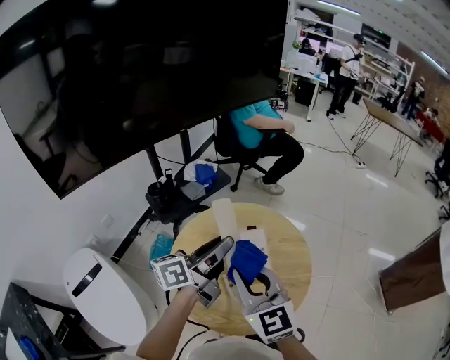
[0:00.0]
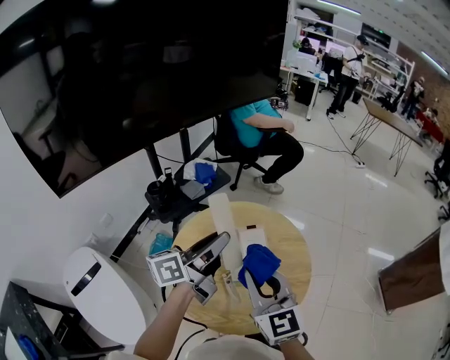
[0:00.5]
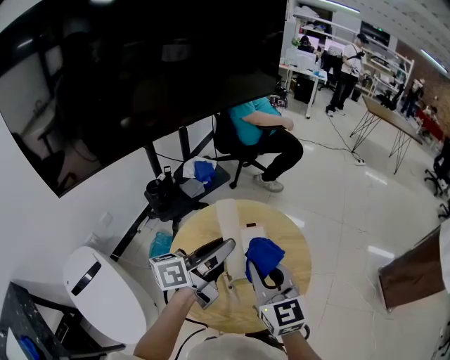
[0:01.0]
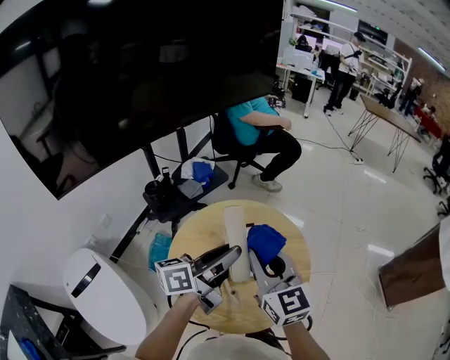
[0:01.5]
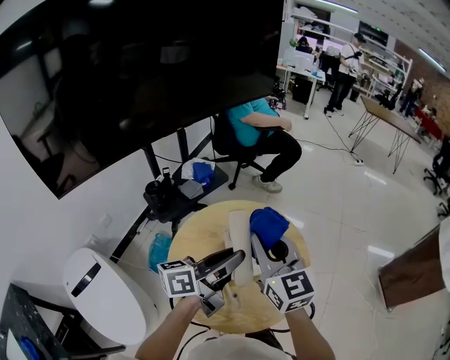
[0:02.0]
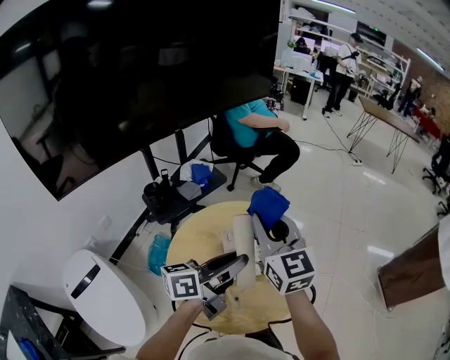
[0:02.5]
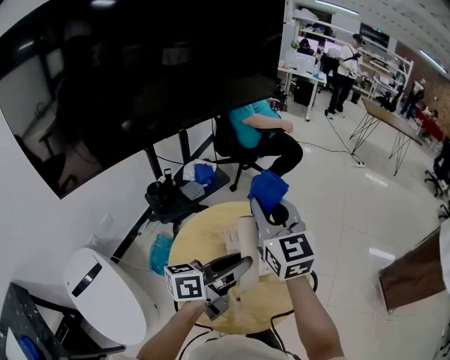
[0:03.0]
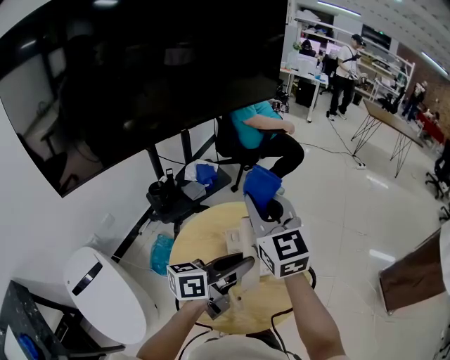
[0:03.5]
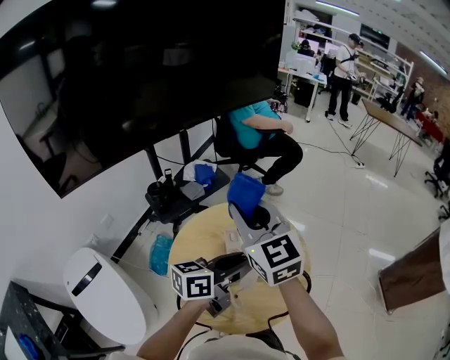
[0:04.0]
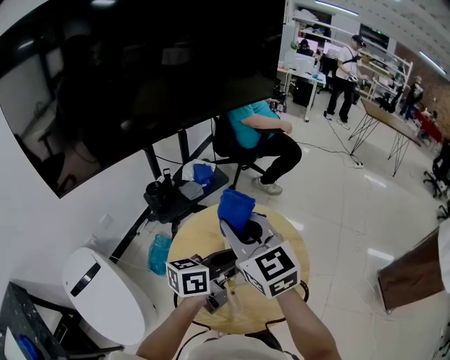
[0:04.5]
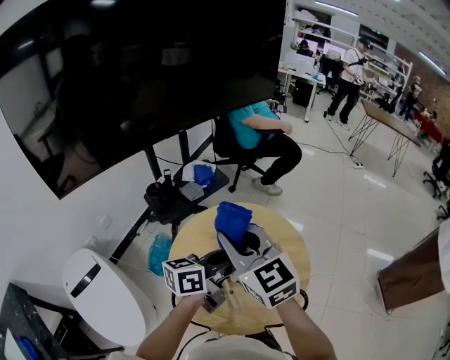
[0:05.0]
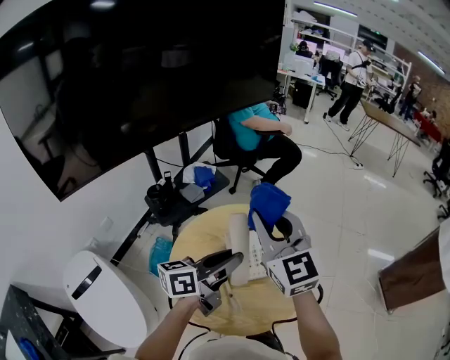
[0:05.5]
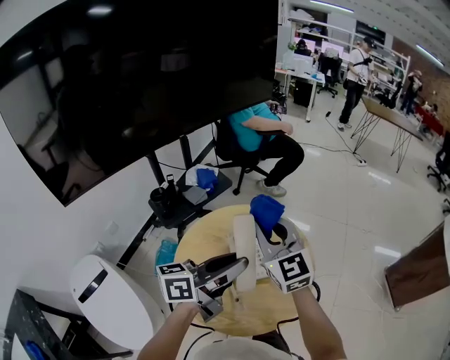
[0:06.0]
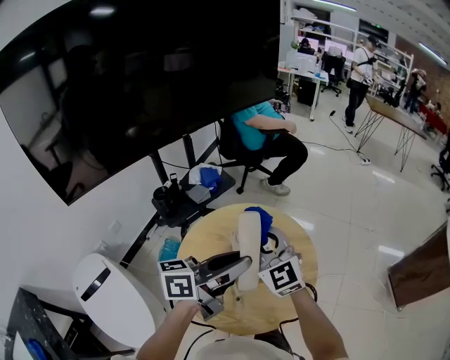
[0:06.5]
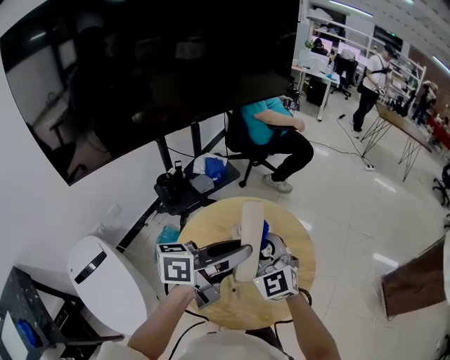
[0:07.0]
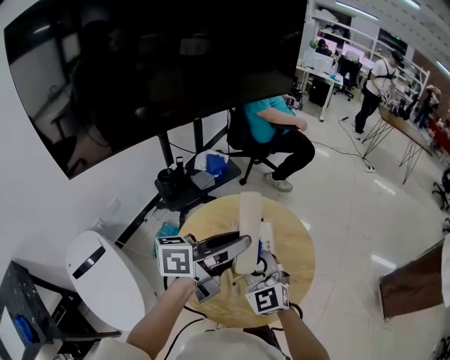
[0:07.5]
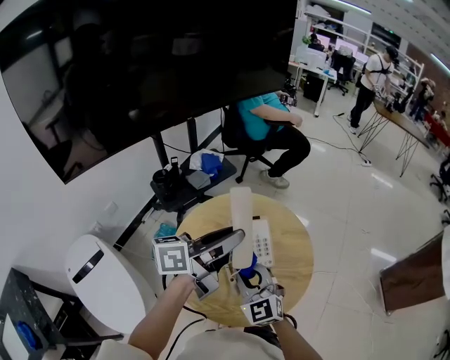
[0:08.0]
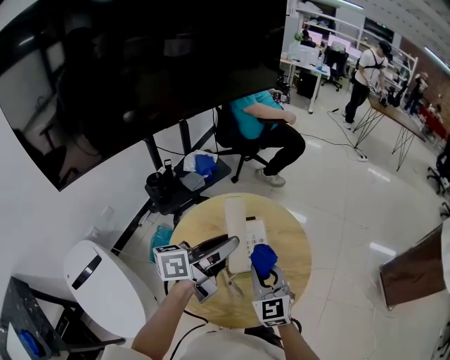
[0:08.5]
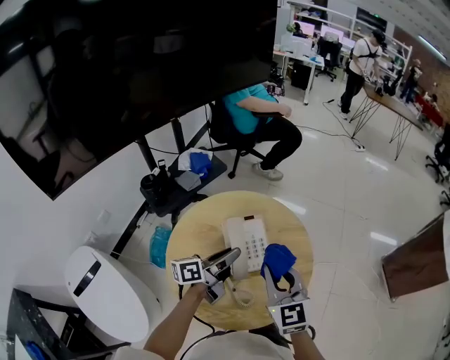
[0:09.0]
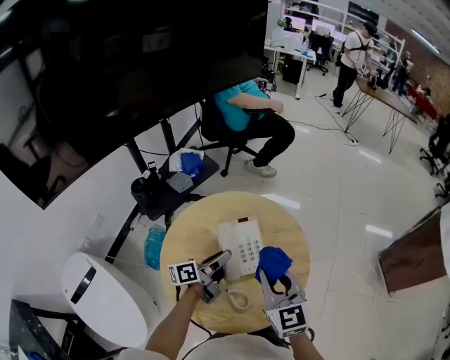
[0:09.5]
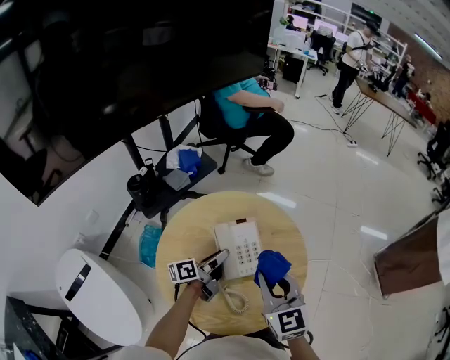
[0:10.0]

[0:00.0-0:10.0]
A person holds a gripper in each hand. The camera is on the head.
0:00.0 to 0:02.0: The right gripper travels forward by roughly 10 cm; the left gripper shifts by approximately 5 cm.
0:02.0 to 0:04.0: The right gripper shifts approximately 10 cm to the left and upward.
0:04.0 to 0:06.0: The left gripper moves upward, some 5 cm; the right gripper shifts approximately 10 cm to the right and downward.
0:06.0 to 0:08.0: The right gripper shifts some 20 cm downward and backward.
0:08.0 to 0:10.0: The right gripper moves to the right, some 10 cm, and changes its angle by about 30 degrees. The left gripper is displaced downward by approximately 30 cm, and rotates some 30 degrees.

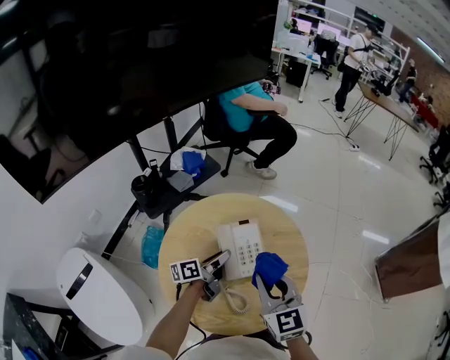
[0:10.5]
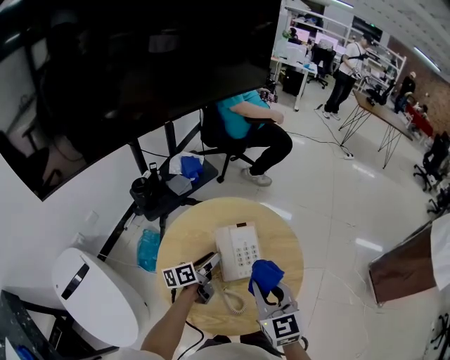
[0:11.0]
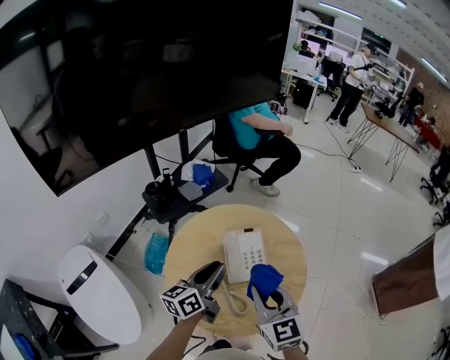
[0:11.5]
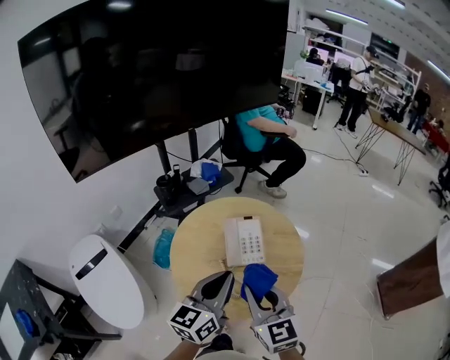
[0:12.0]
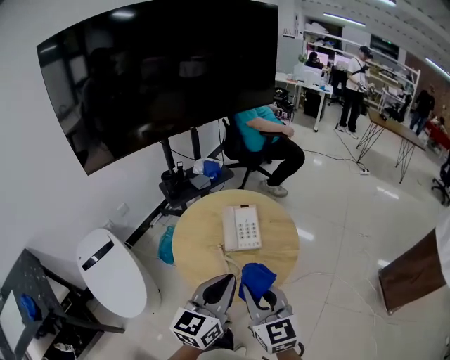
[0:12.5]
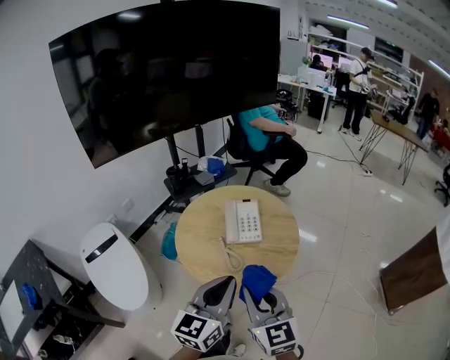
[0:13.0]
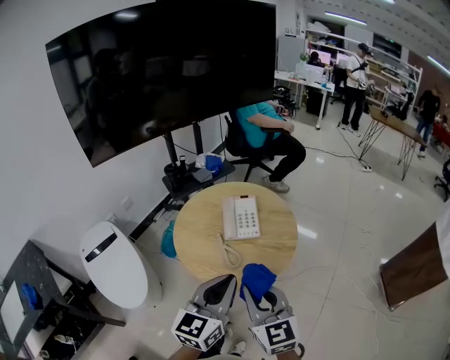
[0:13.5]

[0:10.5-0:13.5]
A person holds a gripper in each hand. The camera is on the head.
0:10.5 to 0:12.0: The right gripper goes approximately 15 cm backward and upward. Meanwhile the left gripper moves upward and backward, roughly 30 cm, rolls clockwise, seen from behind, by some 50 degrees, and closes its fingers.
0:12.0 to 0:13.5: The grippers both shift backward by roughly 15 cm.

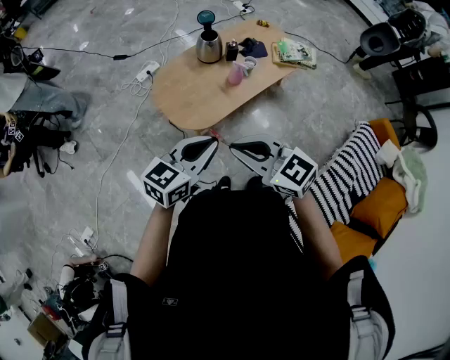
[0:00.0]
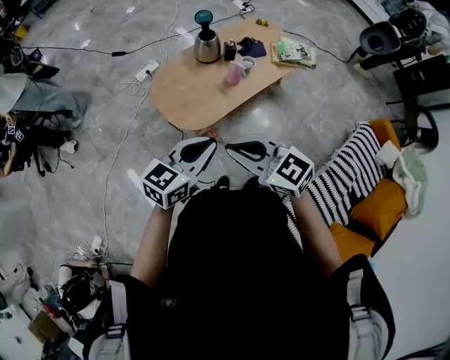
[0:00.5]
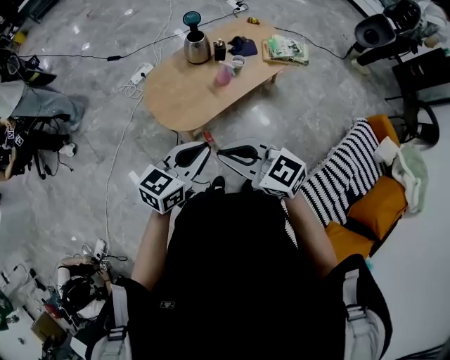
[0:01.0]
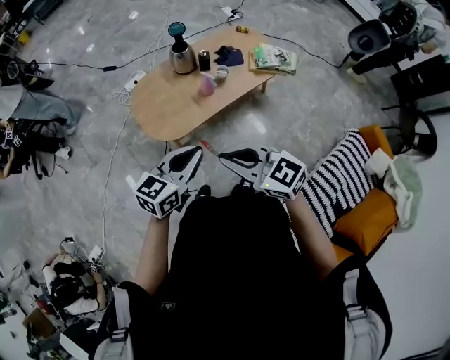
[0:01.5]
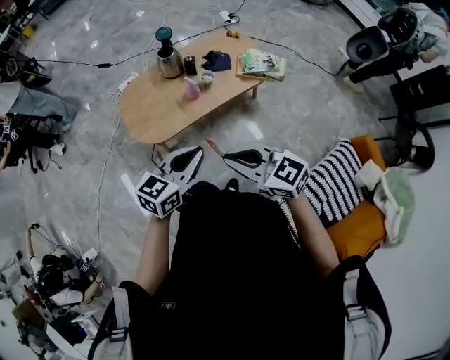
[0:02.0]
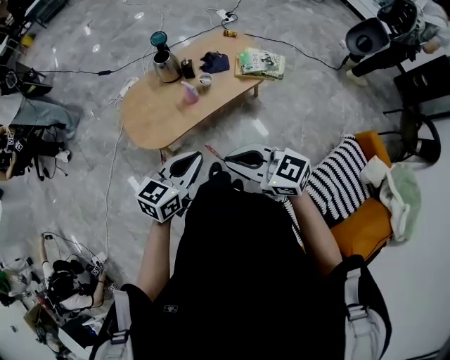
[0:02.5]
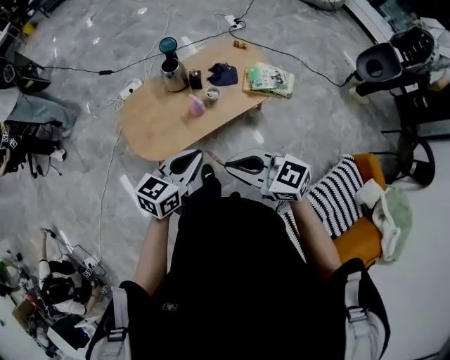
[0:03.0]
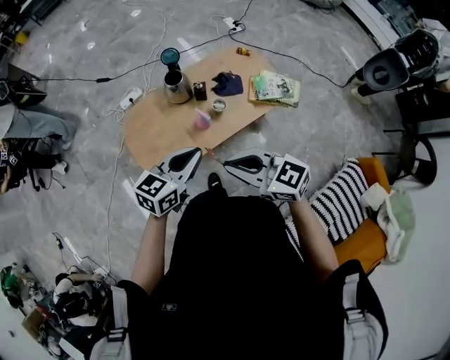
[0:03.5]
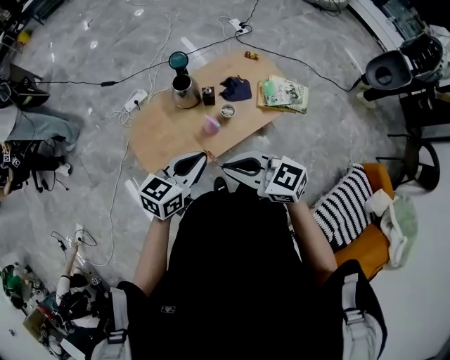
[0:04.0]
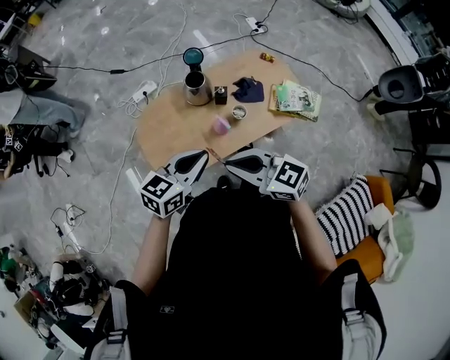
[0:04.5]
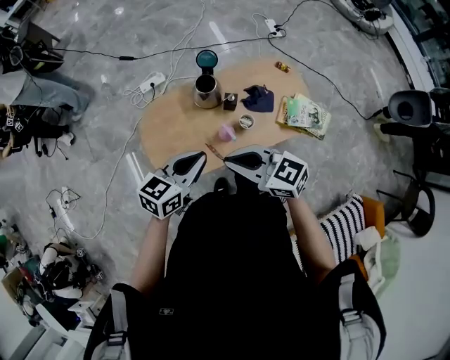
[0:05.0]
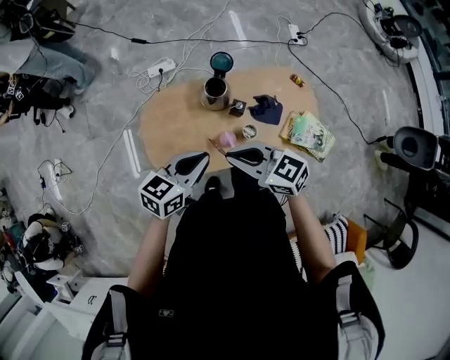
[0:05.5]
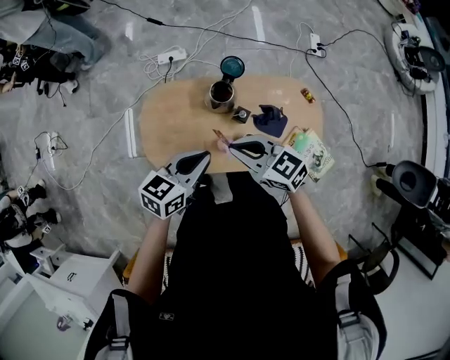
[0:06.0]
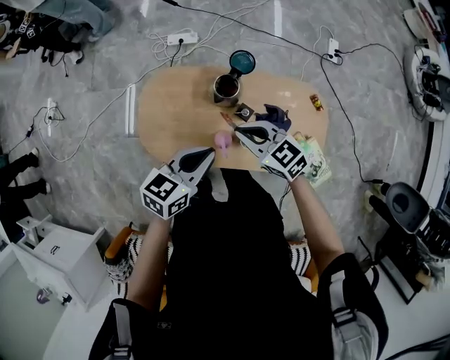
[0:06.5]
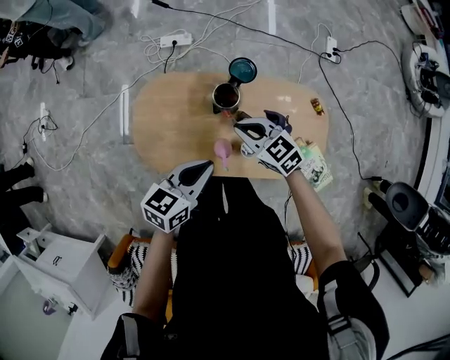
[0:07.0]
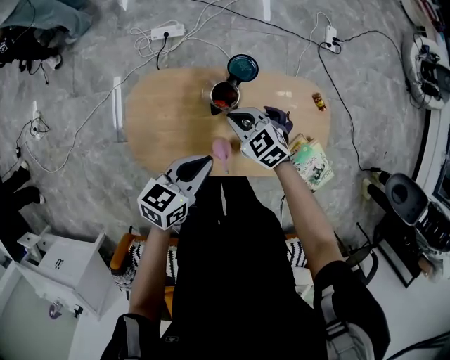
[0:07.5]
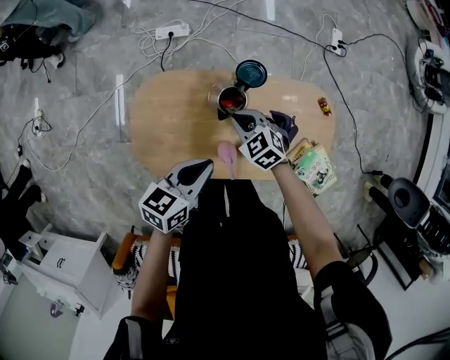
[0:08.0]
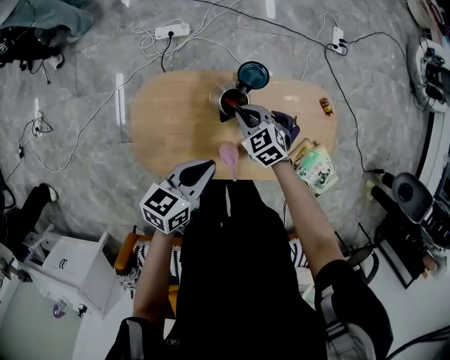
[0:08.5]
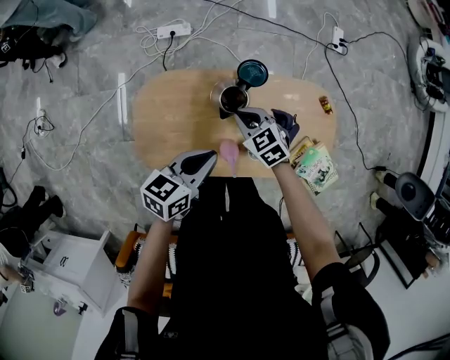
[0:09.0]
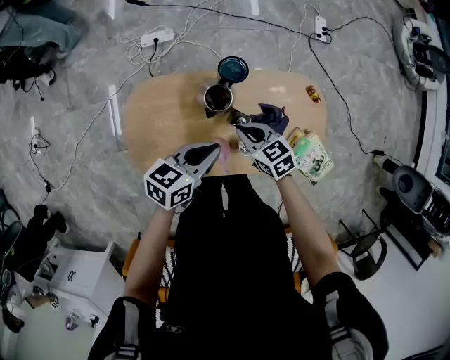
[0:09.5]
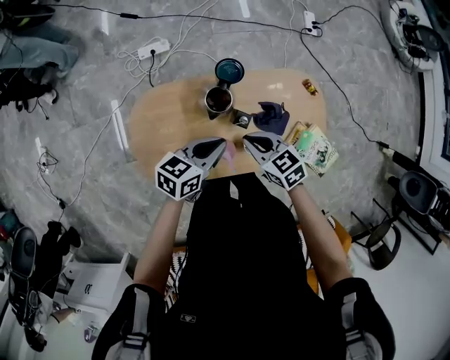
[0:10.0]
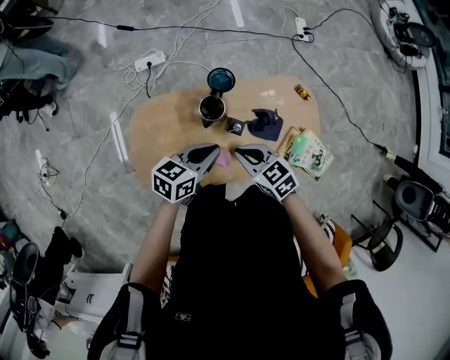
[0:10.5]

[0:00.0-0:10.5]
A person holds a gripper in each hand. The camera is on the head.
0:00.0 to 0:02.0: Both grippers travel together to the right, about 25 cm.
0:02.0 to 0:04.0: Both grippers travel together forward, approximately 25 cm.
0:04.0 to 0:06.5: The left gripper ends up approximately 20 cm from where it was, and turns by roughly 40 degrees; the right gripper ends up approximately 35 cm from where it was, and swivels some 30 degrees.
0:06.5 to 0:08.5: The right gripper heads downward and forward, covering about 20 cm, and swivels about 30 degrees. Meanwhile the left gripper travels downward and forward by roughly 10 cm.
0:08.5 to 0:10.5: The left gripper heads to the right, covering about 5 cm; the right gripper is displaced backward and upward by approximately 15 cm, and swivels approximately 20 degrees.

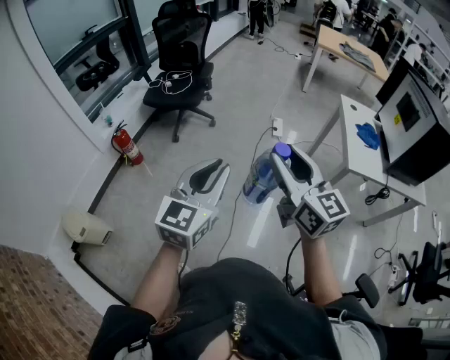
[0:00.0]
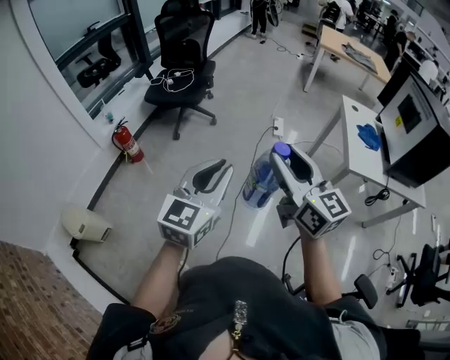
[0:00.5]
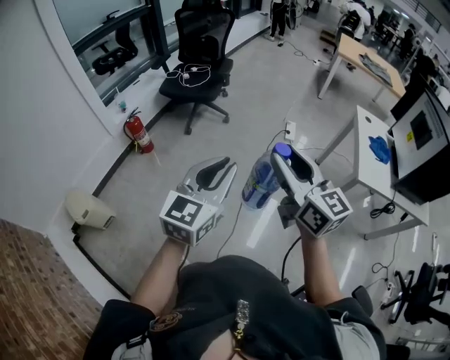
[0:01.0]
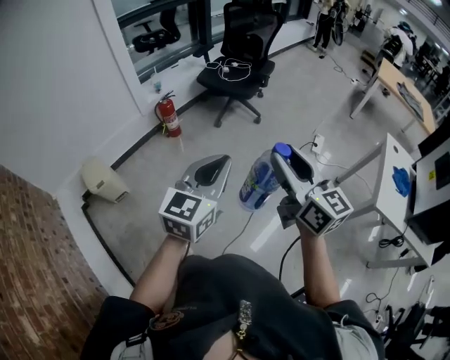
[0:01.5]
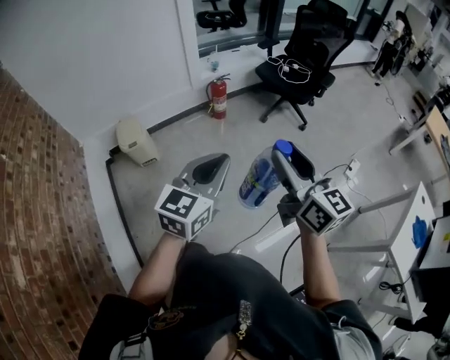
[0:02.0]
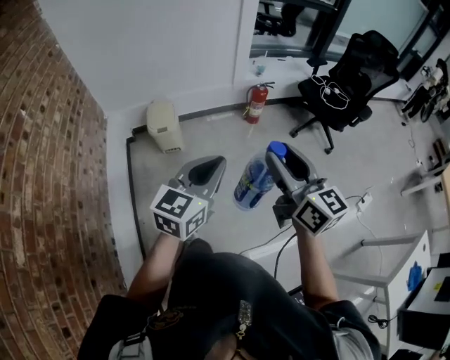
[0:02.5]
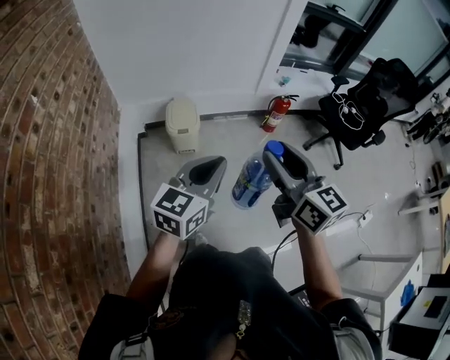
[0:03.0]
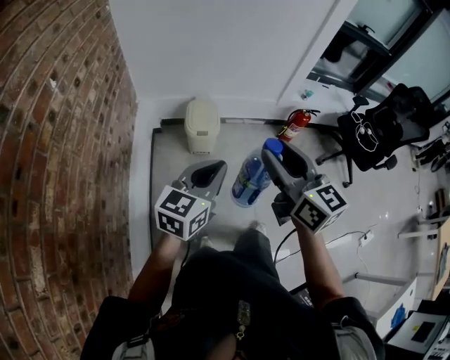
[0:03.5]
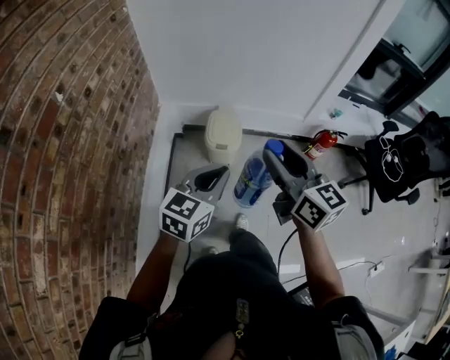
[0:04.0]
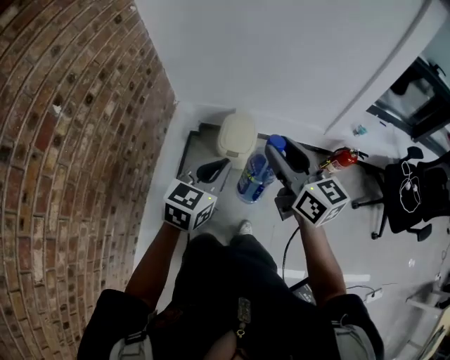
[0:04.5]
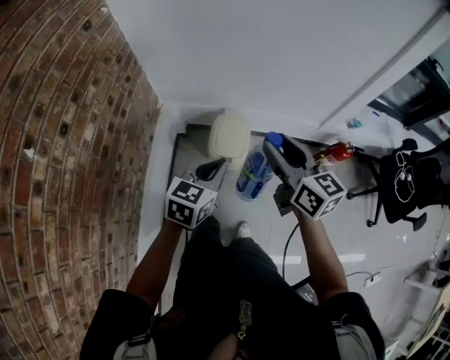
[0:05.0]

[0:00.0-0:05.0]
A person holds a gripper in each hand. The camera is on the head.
0:00.0 to 0:02.5: The left gripper ends up approximately 40 cm from where it was, and swivels roughly 50 degrees. The right gripper moves approximately 40 cm, and swivels roughly 50 degrees.
0:02.5 to 0:05.0: The pair of grippers is taken roughly 50 cm. The right gripper turns by about 30 degrees; the left gripper swivels some 30 degrees.
